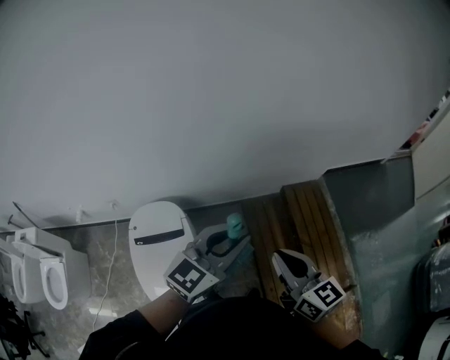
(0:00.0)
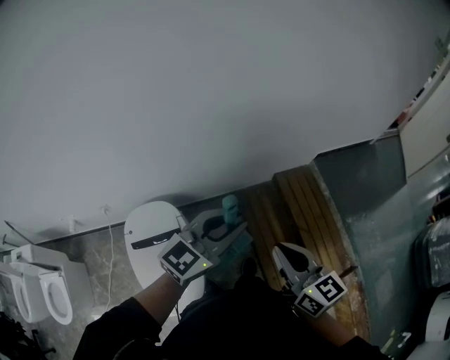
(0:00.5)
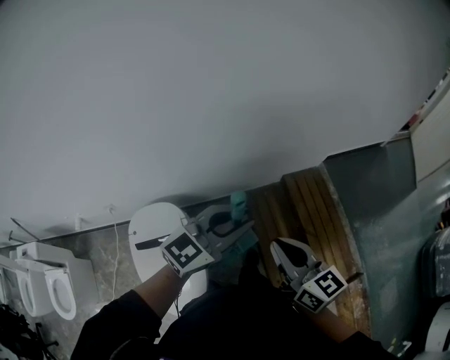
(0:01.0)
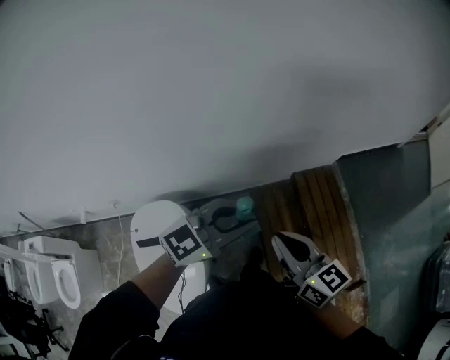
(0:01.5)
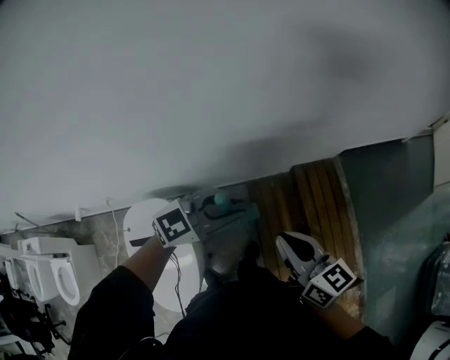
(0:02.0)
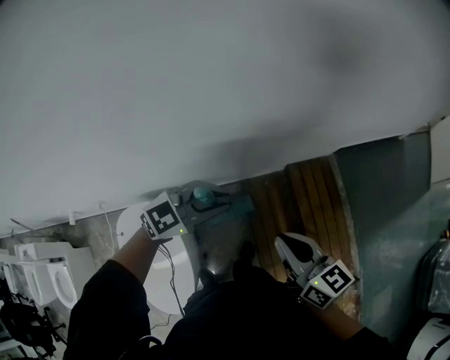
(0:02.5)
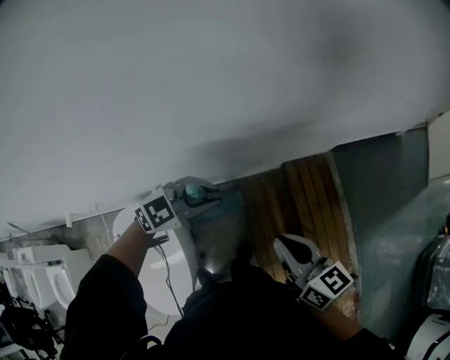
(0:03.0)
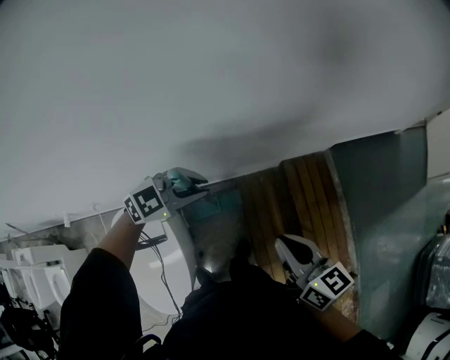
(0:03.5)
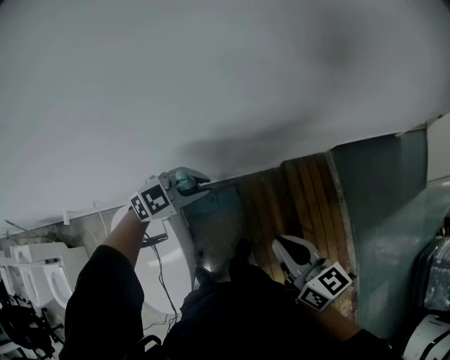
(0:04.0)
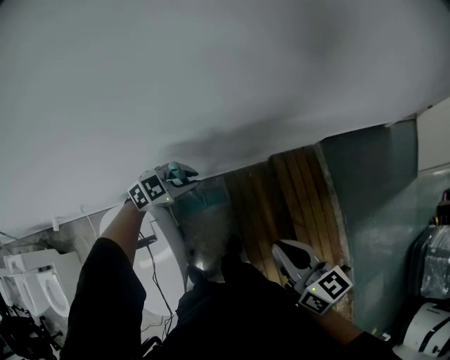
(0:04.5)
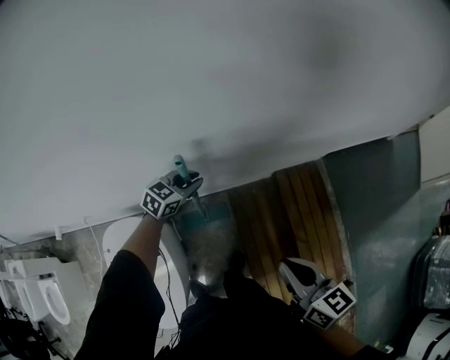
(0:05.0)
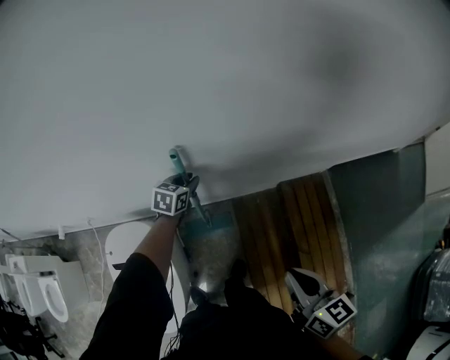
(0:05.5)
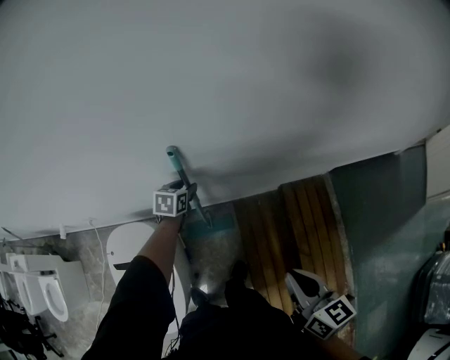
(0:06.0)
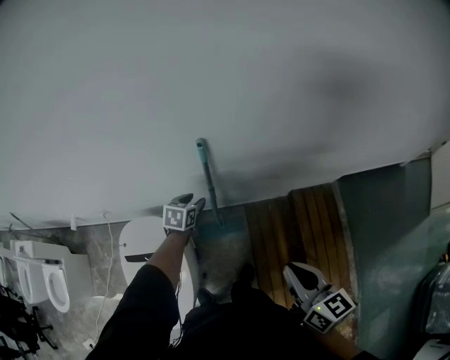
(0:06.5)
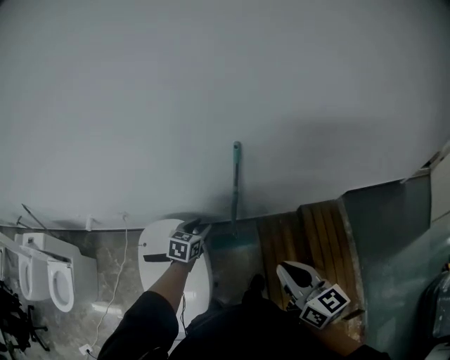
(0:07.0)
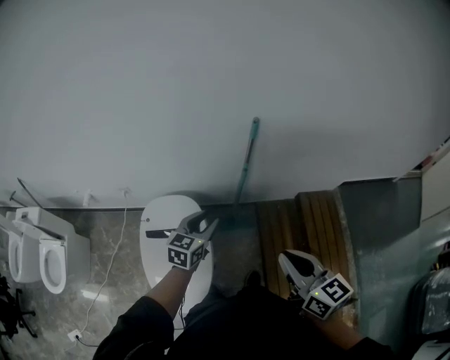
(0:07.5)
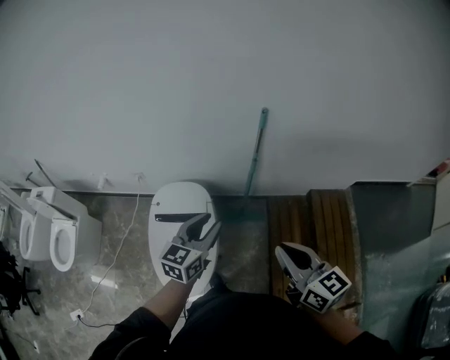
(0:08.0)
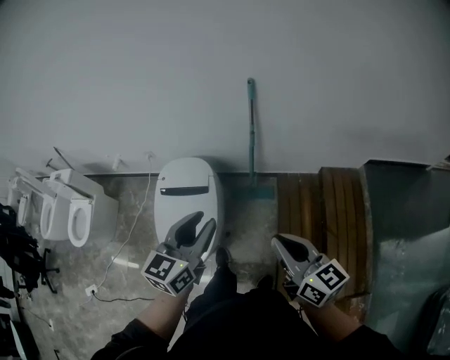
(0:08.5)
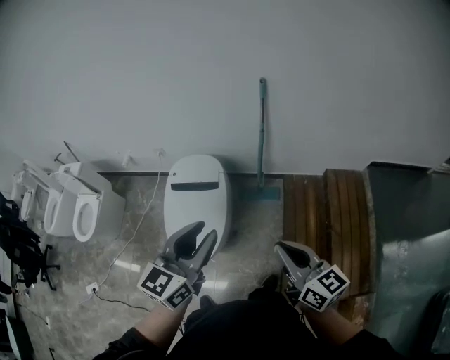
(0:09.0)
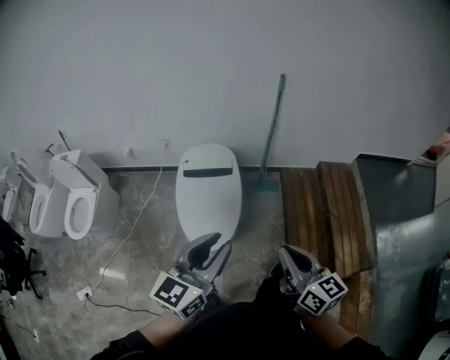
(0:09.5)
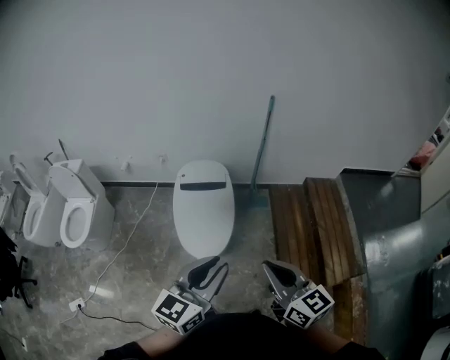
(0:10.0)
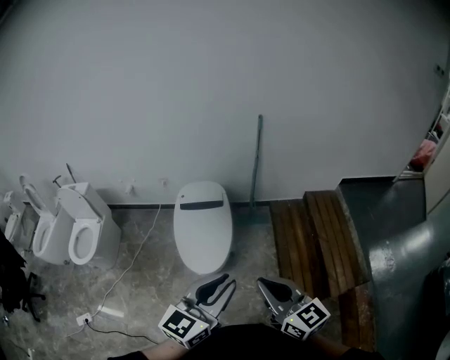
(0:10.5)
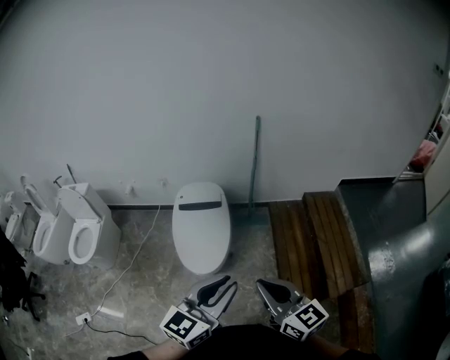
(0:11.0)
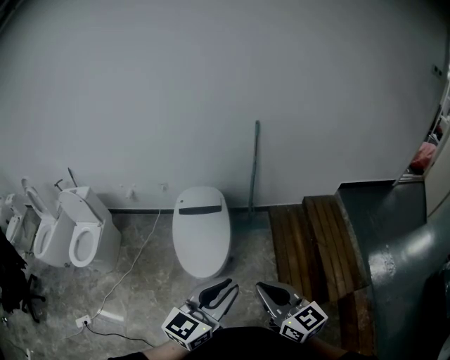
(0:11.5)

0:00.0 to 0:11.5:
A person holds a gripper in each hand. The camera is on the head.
0:00.0 to 0:02.0: The right gripper heads forward, covering some 15 cm. The left gripper moves forward and downward, some 20 cm, and turns by roughly 30 degrees.
0:02.0 to 0:04.0: The left gripper shifts some 15 cm downward, to the left and forward.
0:04.0 to 0:06.0: The left gripper travels downward, forward and to the left by some 20 cm, rotates approximately 70 degrees, and opens its fingers. The right gripper heads to the right, covering approximately 5 cm.
0:06.0 to 0:07.5: The left gripper shifts some 35 cm backward, upward and to the left, and swivels roughly 20 degrees; the right gripper travels to the left and backward by roughly 25 cm.
0:07.5 to 0:09.5: The left gripper goes about 40 cm backward and upward, while the right gripper moves backward, roughly 30 cm.
0:09.5 to 0:11.5: The left gripper travels backward and to the right by approximately 15 cm, while the right gripper is displaced backward and upward by approximately 15 cm.

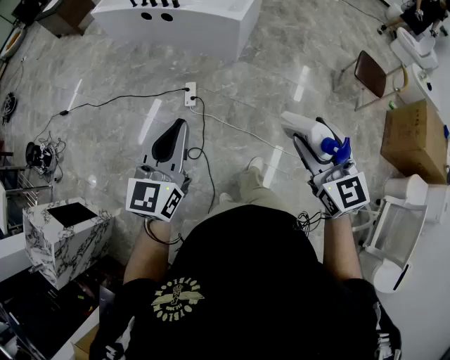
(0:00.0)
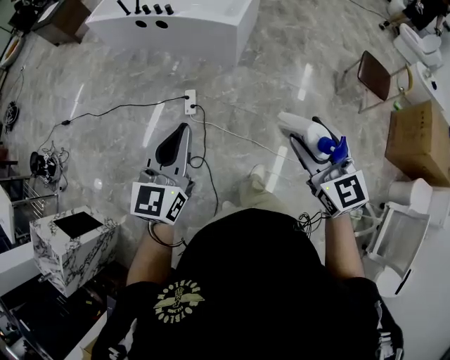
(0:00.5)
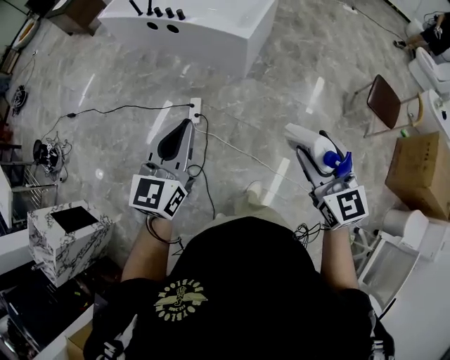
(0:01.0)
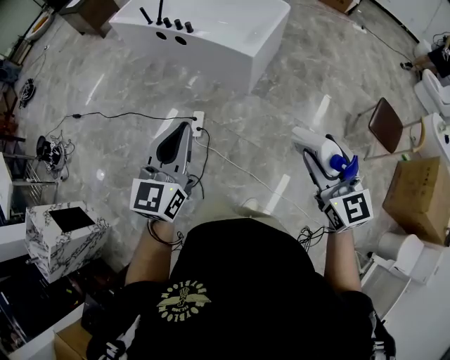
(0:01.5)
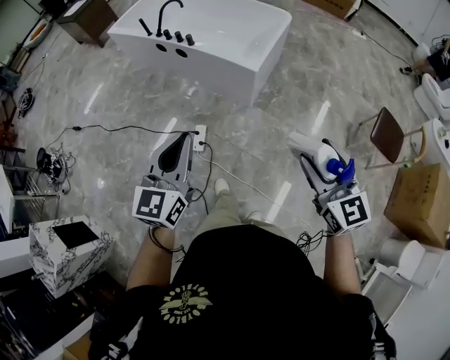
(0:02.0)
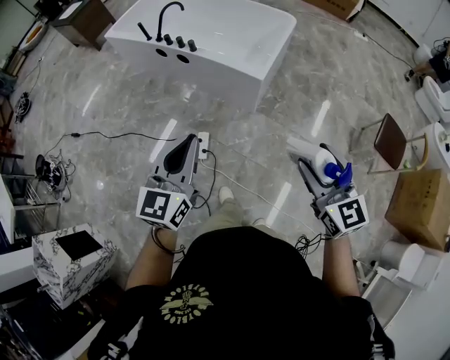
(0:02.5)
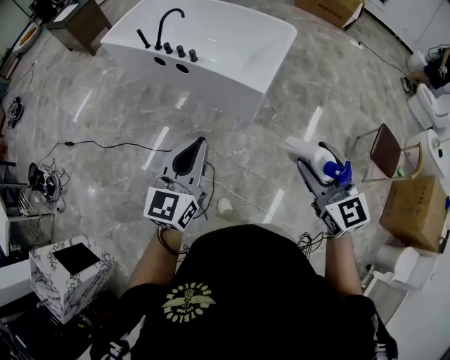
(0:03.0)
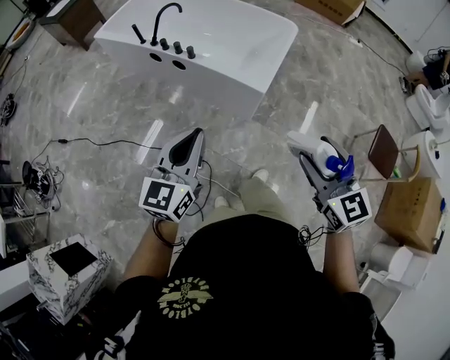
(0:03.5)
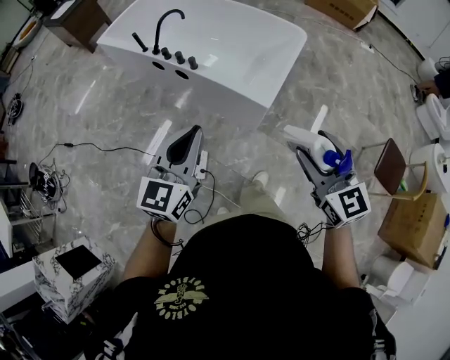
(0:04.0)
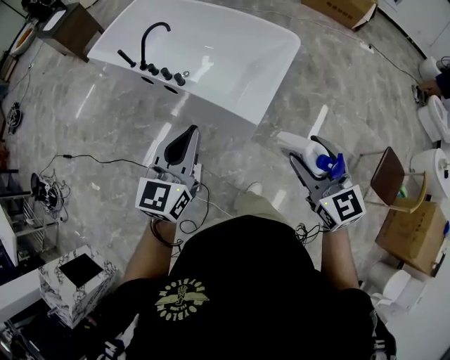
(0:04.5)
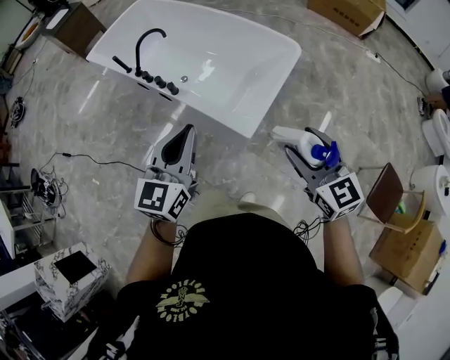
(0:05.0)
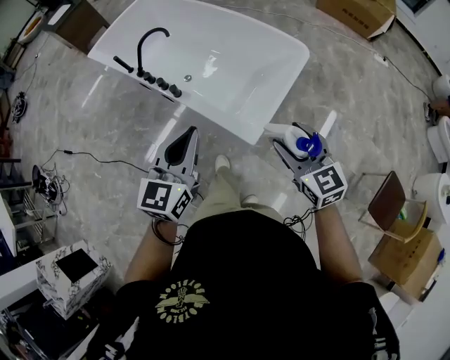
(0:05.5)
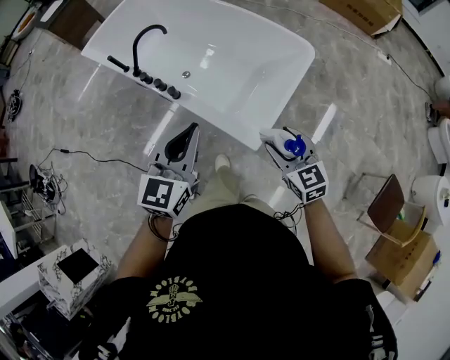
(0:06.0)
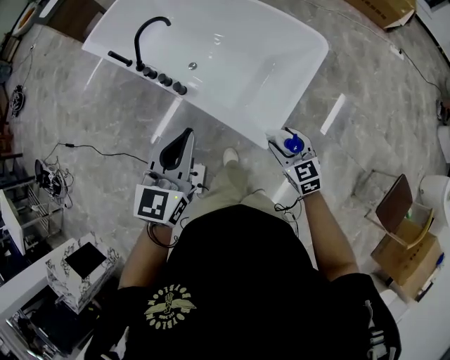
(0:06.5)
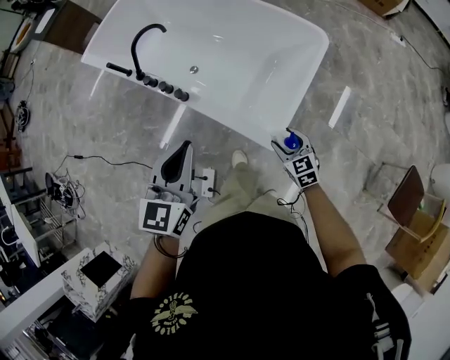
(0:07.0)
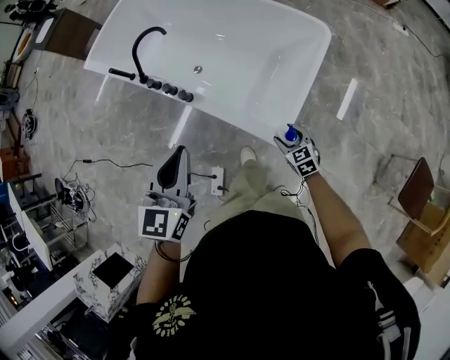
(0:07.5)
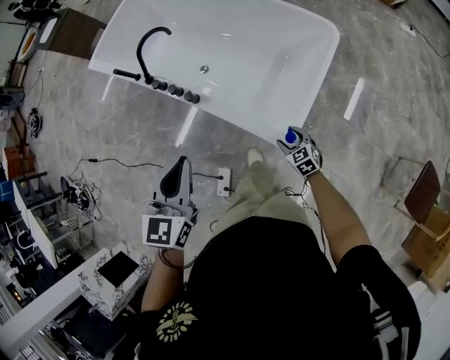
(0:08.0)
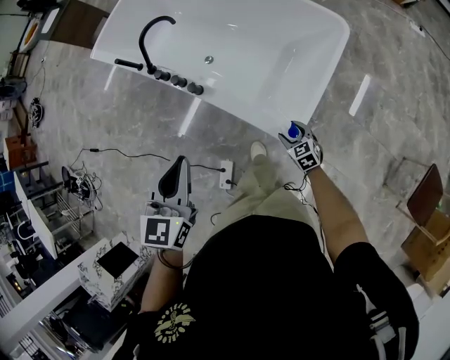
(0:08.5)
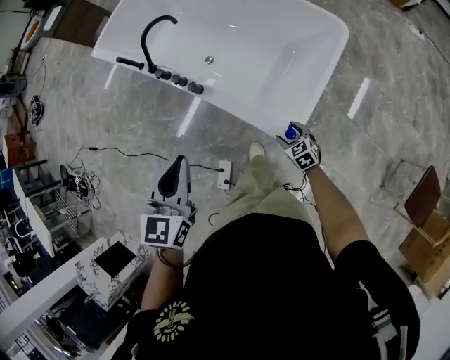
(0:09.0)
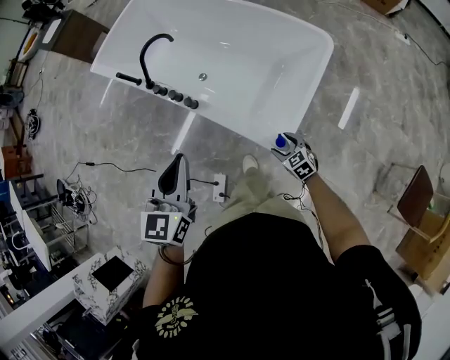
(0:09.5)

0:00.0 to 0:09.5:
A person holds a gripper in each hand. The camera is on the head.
0:00.0 to 0:02.0: Both grippers travel together forward, about 30 cm.
0:02.0 to 0:04.0: The two grippers go about 30 cm forward.
0:04.0 to 0:05.5: The right gripper heads forward, covering approximately 25 cm, while the left gripper goes about 25 cm forward and to the right.
0:05.5 to 0:07.5: The left gripper is displaced forward, to the left and downward by roughly 15 cm. Meanwhile the right gripper travels downward by some 35 cm, and changes its angle by some 20 degrees.

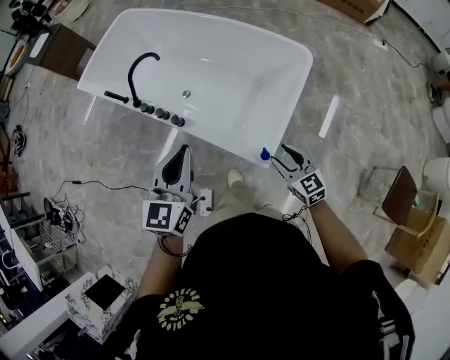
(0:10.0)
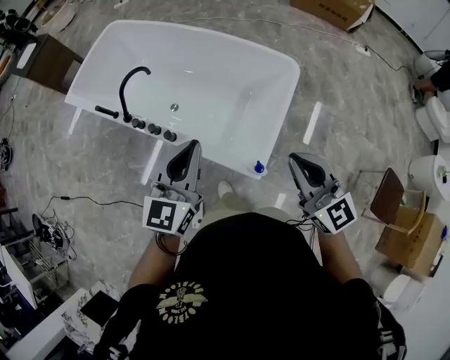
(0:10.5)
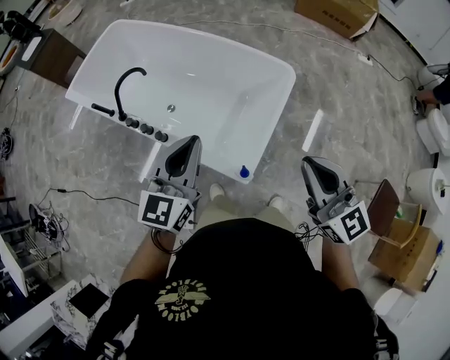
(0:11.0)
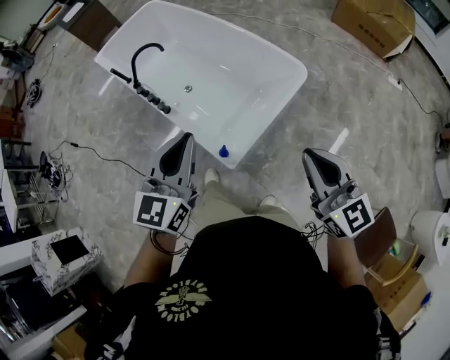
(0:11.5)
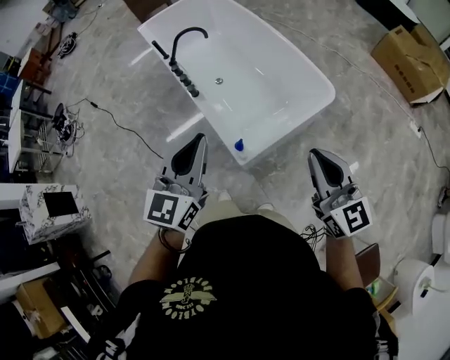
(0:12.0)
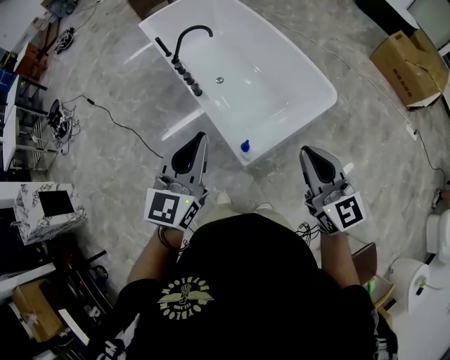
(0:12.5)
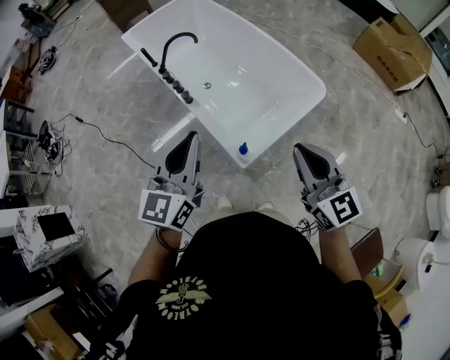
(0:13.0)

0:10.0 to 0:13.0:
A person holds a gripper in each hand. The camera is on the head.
0:10.0 to 0:11.5: The right gripper travels upward and to the right by about 35 cm, swivels roughly 20 degrees, and closes its fingers. Meanwhile the left gripper is displaced to the right by approximately 20 cm.
0:11.5 to 0:13.0: The two grippers go roughly 10 cm to the left.

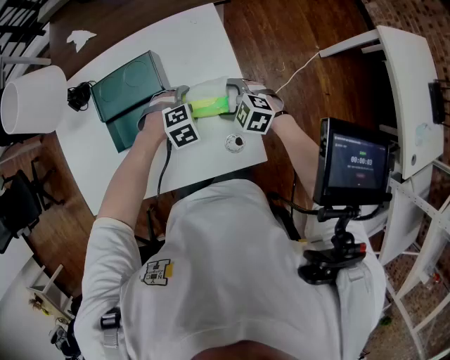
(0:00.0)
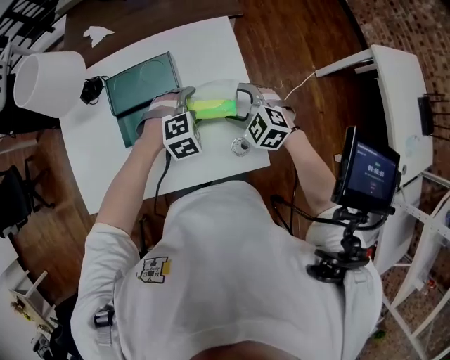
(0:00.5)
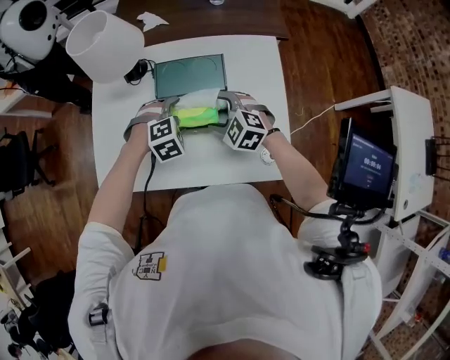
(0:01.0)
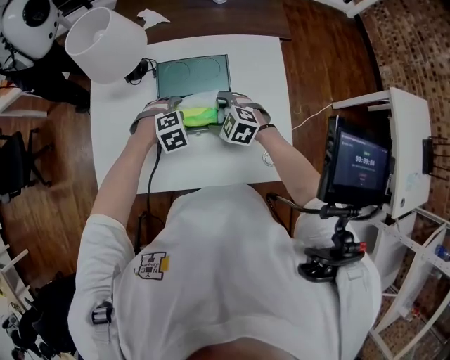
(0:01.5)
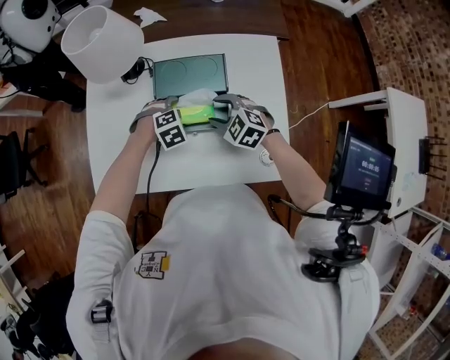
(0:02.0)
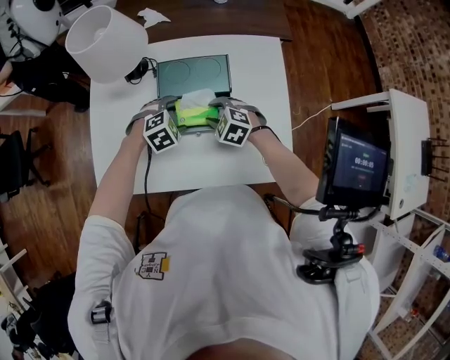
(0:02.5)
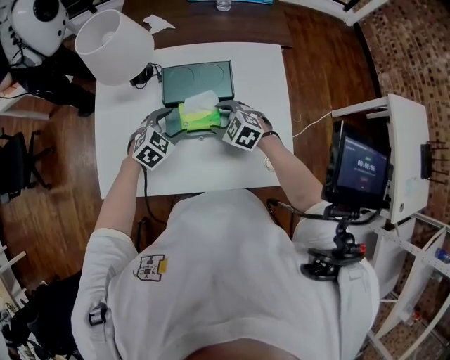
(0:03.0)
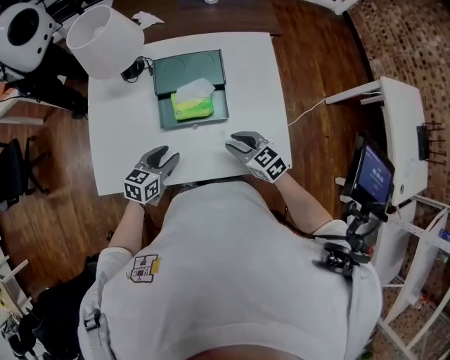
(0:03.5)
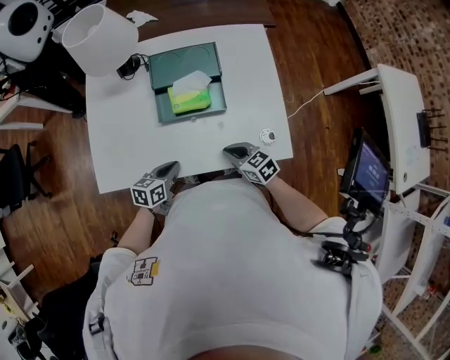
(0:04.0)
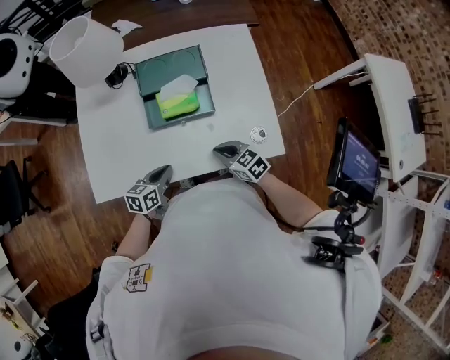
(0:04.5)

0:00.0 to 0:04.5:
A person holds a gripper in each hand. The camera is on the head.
0:00.0 to 0:02.0: The left gripper moves roughly 10 cm upward and comes back, while the right gripper changes place by approximately 20 cm, and closes its fingers.
0:02.0 to 0:04.5: The grippers both shift backward by roughly 20 cm. The left gripper rotates around the line of its fingers by about 70 degrees, counterclockwise from behind, and closes. Meanwhile the right gripper rotates some 40 degrees, and closes its fingers.
